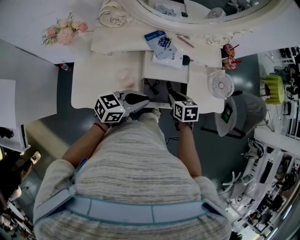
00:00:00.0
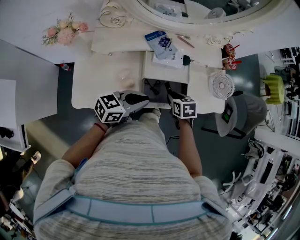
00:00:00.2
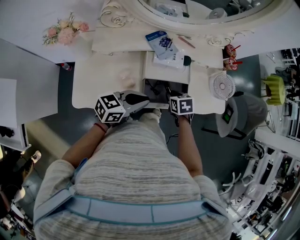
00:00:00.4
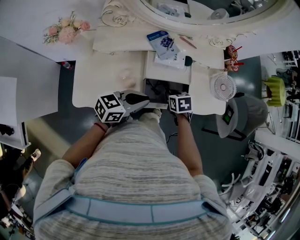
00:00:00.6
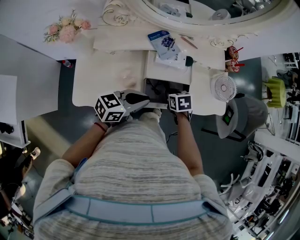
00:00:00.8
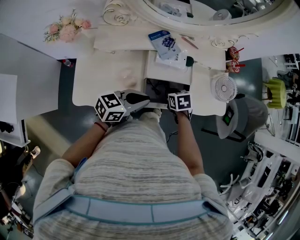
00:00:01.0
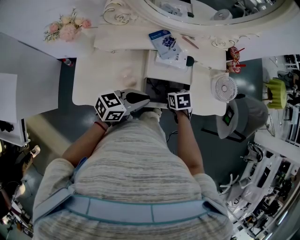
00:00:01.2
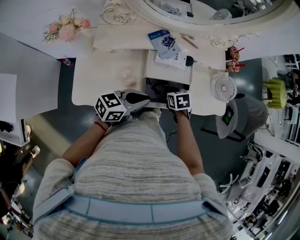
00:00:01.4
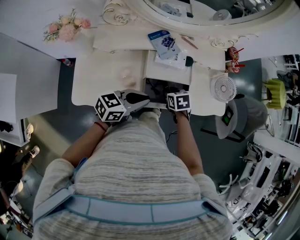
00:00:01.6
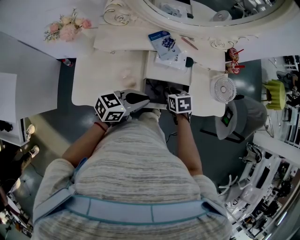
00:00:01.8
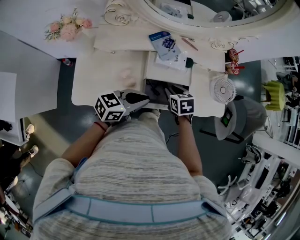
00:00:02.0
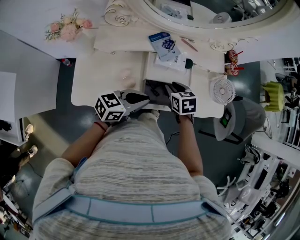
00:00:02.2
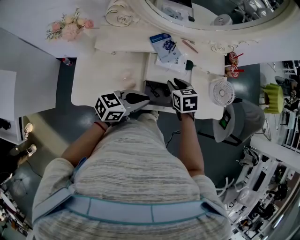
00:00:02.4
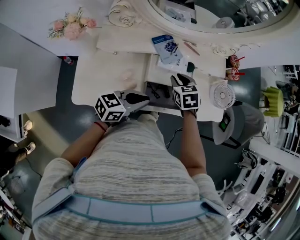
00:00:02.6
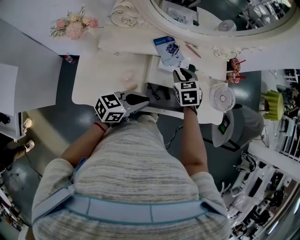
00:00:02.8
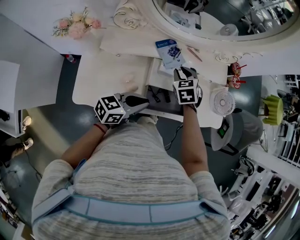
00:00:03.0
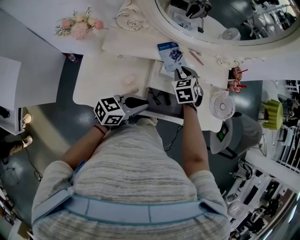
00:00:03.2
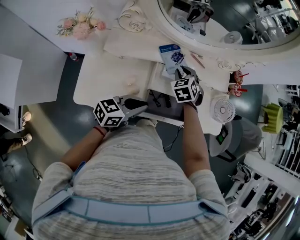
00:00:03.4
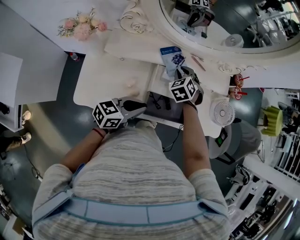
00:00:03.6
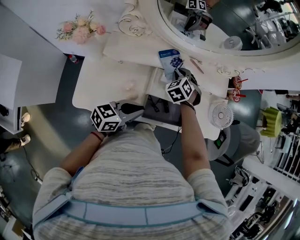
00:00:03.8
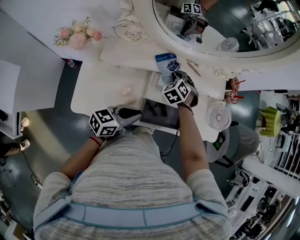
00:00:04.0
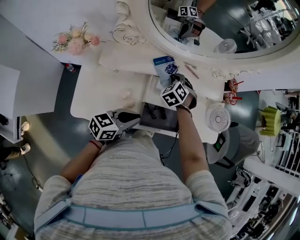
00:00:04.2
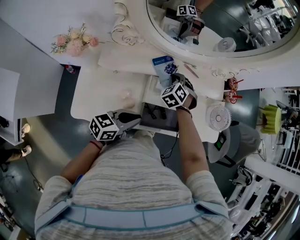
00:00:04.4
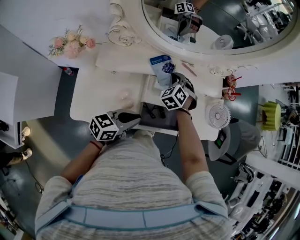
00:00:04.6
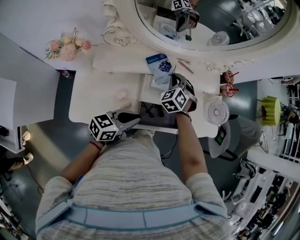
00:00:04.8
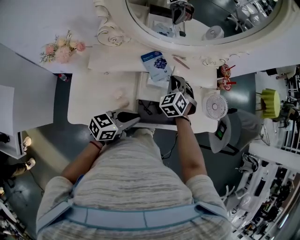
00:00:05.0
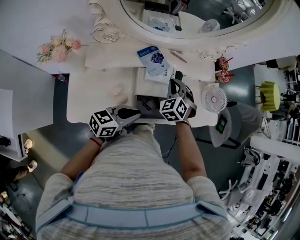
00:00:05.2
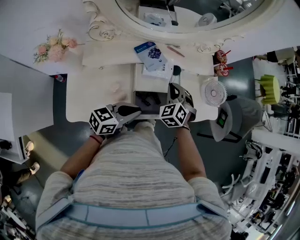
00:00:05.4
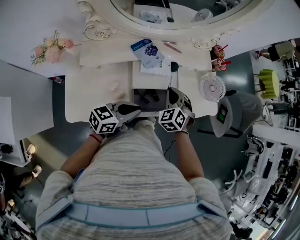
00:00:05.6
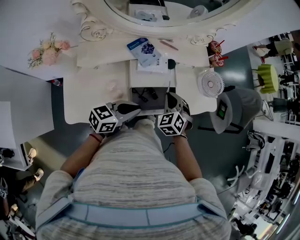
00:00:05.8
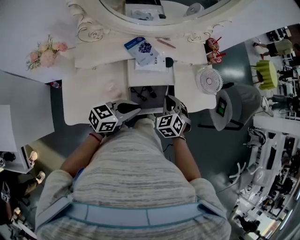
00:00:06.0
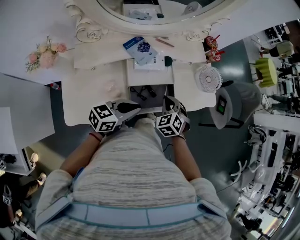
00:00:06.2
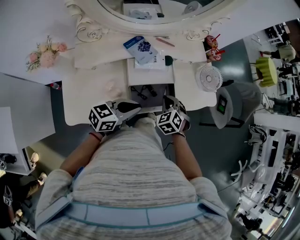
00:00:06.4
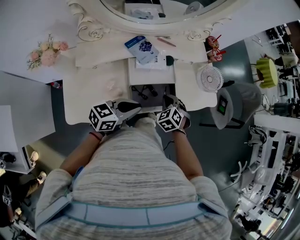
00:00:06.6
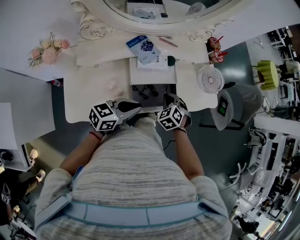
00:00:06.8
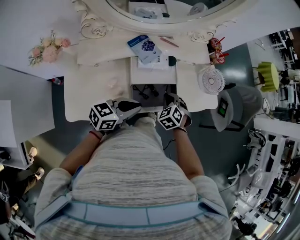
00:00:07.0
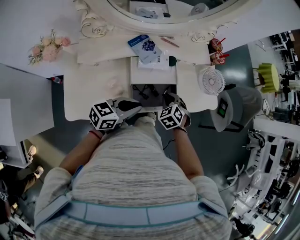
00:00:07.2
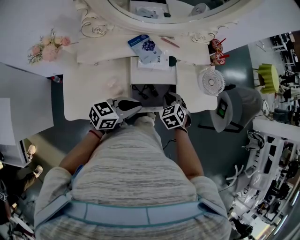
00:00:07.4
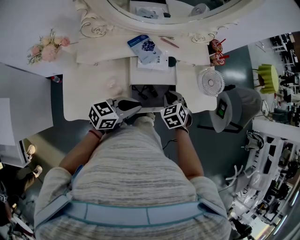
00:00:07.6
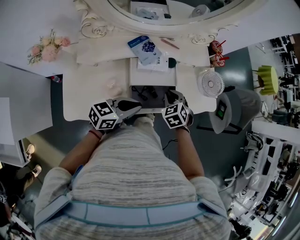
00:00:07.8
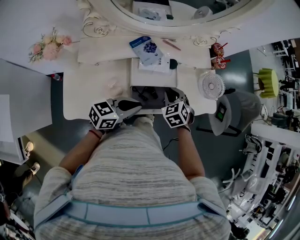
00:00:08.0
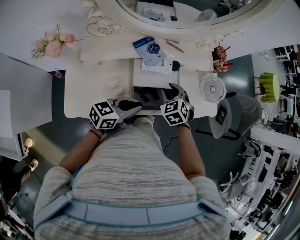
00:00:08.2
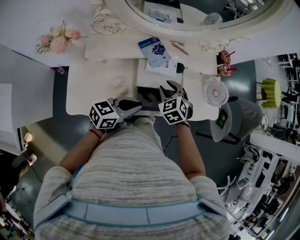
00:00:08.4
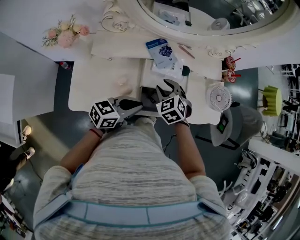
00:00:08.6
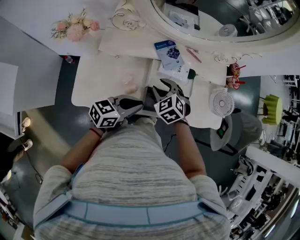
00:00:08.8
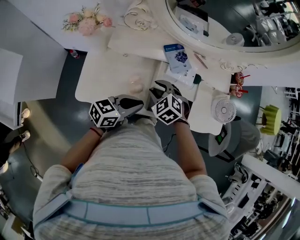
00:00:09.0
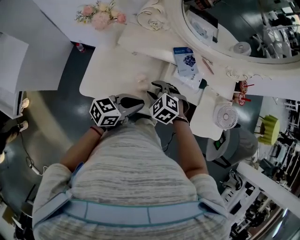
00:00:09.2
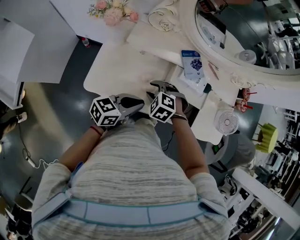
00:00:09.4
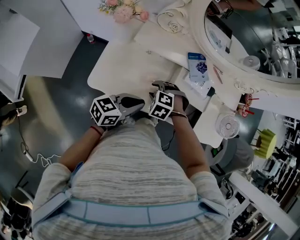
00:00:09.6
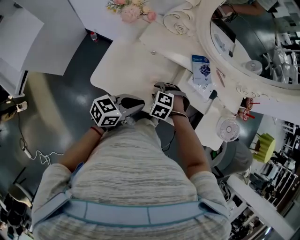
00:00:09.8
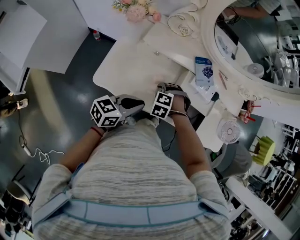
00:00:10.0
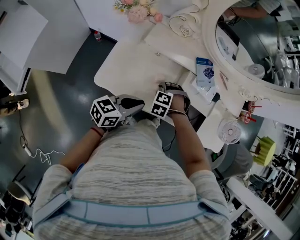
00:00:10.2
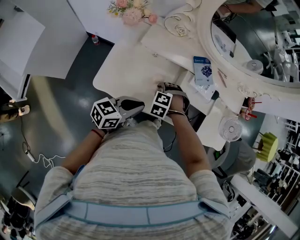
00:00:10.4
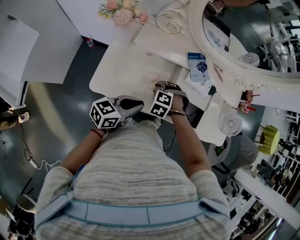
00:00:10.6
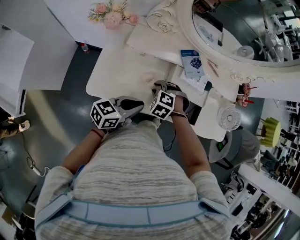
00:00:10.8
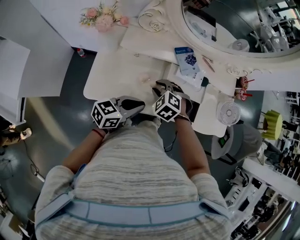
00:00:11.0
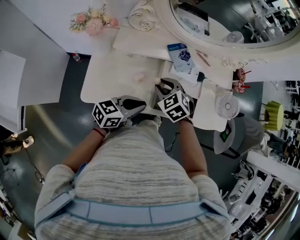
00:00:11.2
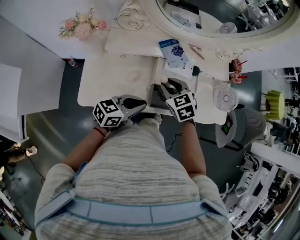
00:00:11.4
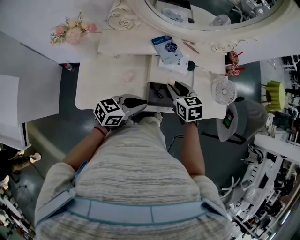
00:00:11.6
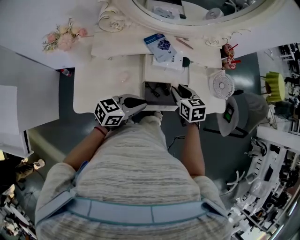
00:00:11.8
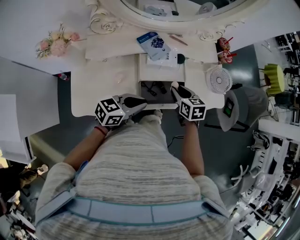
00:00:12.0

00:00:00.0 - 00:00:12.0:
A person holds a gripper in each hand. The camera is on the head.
00:00:00.0 - 00:00:01.6: The right gripper ends up about 5 cm from where it was.
00:00:01.6 - 00:00:03.0: The right gripper is displaced upward, forward and to the left by roughly 20 cm, and swivels roughly 30 degrees.
00:00:03.0 - 00:00:04.4: The right gripper ends up about 5 cm from where it was, and changes its angle by some 30 degrees.
00:00:04.4 - 00:00:06.0: The right gripper goes some 25 cm to the right and backward, while the left gripper goes roughly 5 cm to the right.
00:00:06.0 - 00:00:07.6: There are only small adjustments of the grippers.
00:00:07.6 - 00:00:09.0: The left gripper ends up some 10 cm from where it was. The right gripper shifts by approximately 20 cm, rotates about 40 degrees, and opens.
00:00:09.0 - 00:00:10.4: The left gripper shifts by approximately 10 cm; the right gripper is displaced downward by some 10 cm, and rotates approximately 40 degrees.
00:00:10.4 - 00:00:12.0: The left gripper changes place by roughly 15 cm, and swivels roughly 30 degrees; the right gripper moves approximately 25 cm, and rotates around the line of its fingers by approximately 100 degrees, clockwise from behind.

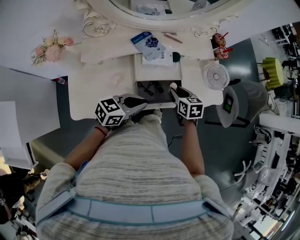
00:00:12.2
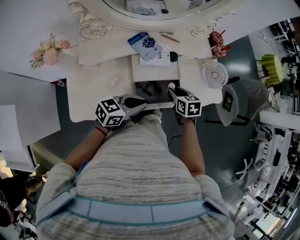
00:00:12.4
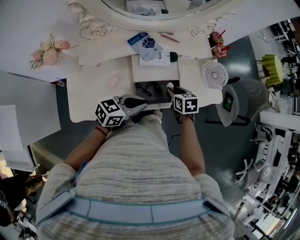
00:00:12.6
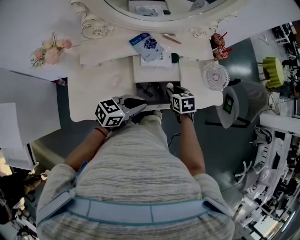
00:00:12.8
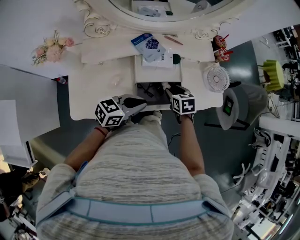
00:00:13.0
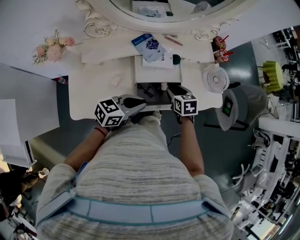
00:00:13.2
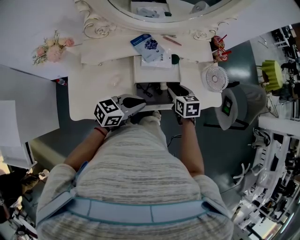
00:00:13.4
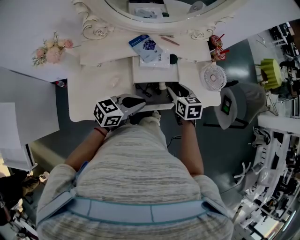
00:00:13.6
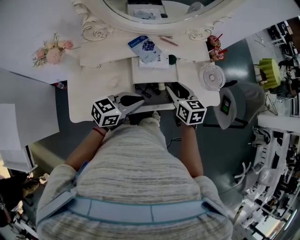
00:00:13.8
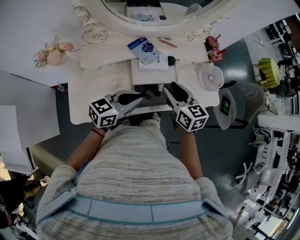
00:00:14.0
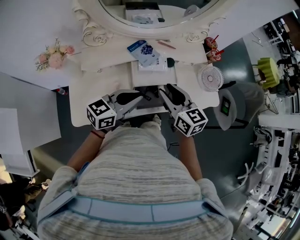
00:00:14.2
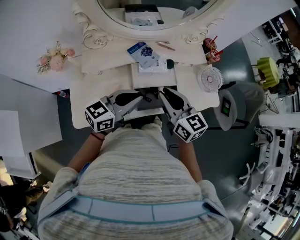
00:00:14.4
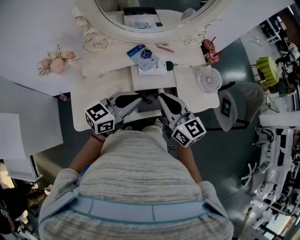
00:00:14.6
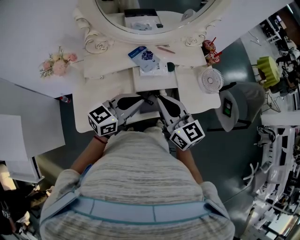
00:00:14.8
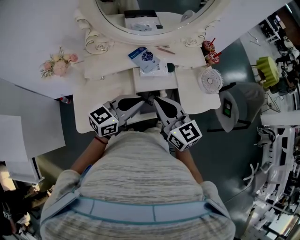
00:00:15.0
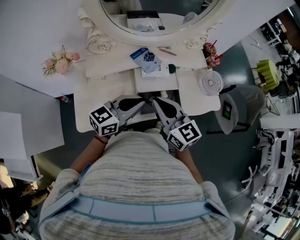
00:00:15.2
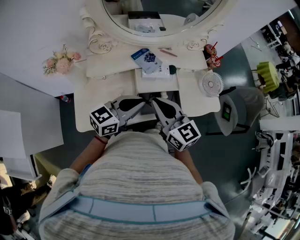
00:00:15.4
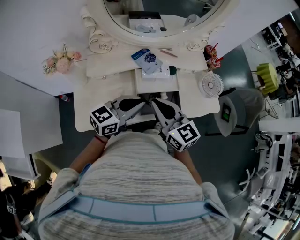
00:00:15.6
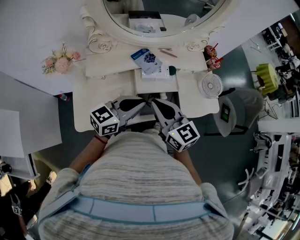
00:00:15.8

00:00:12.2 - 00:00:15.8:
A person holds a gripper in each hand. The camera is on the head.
00:00:12.2 - 00:00:14.0: The left gripper heads upward, covering some 5 cm, while the right gripper moves upward, roughly 15 cm, and turns by some 20 degrees.
00:00:14.0 - 00:00:15.8: The right gripper is displaced to the left, backward and upward by approximately 10 cm, and closes.

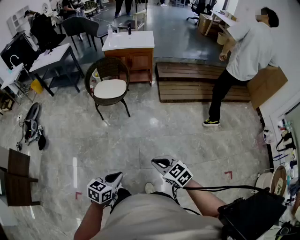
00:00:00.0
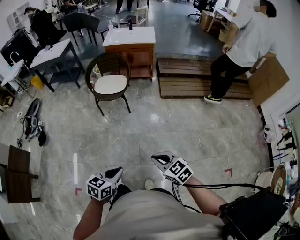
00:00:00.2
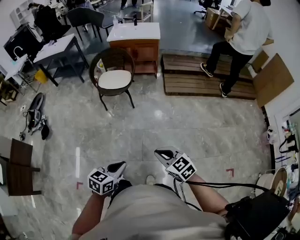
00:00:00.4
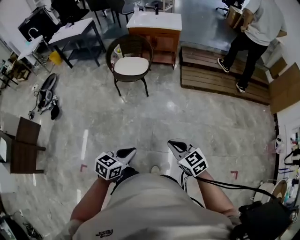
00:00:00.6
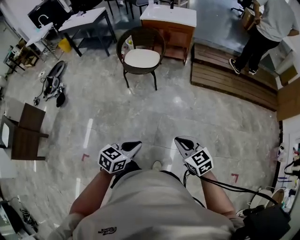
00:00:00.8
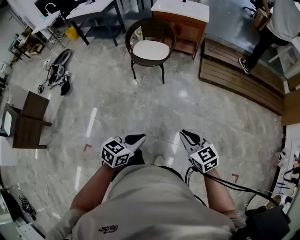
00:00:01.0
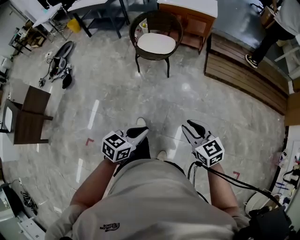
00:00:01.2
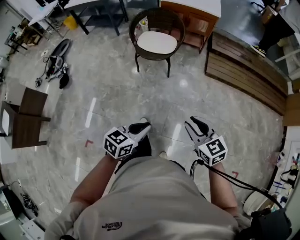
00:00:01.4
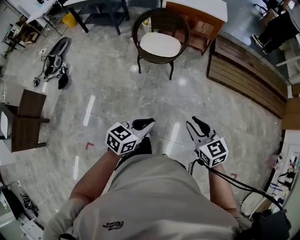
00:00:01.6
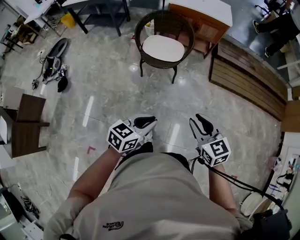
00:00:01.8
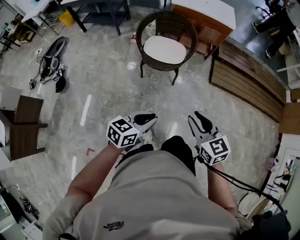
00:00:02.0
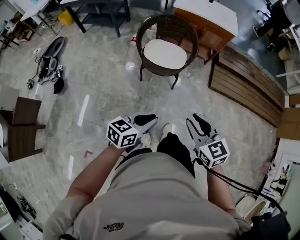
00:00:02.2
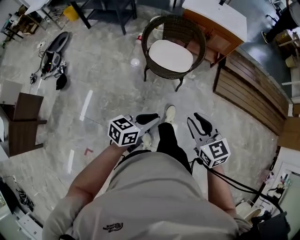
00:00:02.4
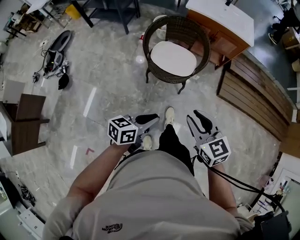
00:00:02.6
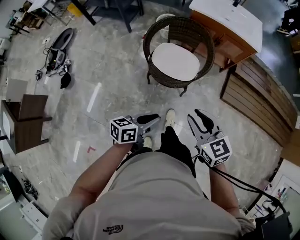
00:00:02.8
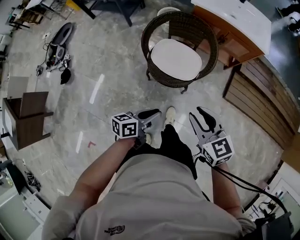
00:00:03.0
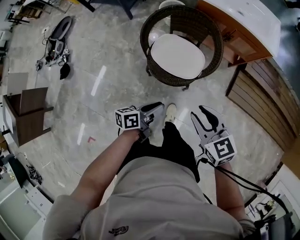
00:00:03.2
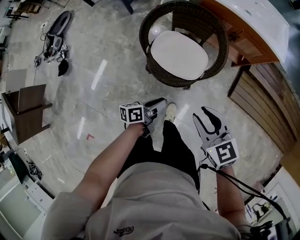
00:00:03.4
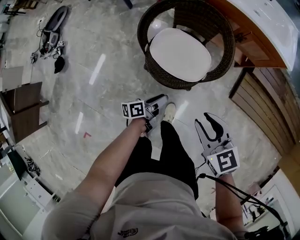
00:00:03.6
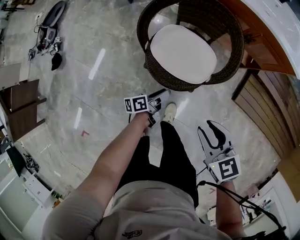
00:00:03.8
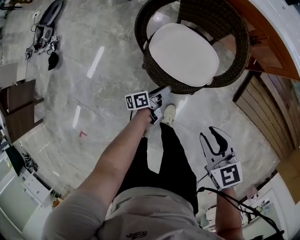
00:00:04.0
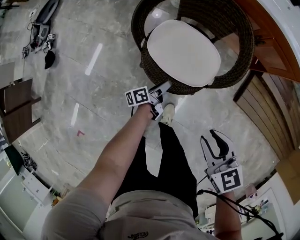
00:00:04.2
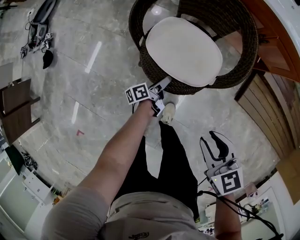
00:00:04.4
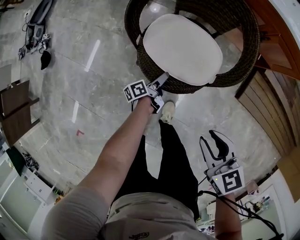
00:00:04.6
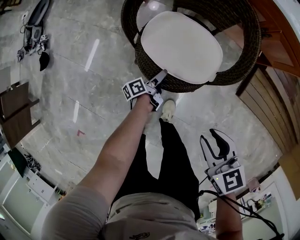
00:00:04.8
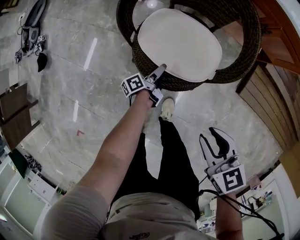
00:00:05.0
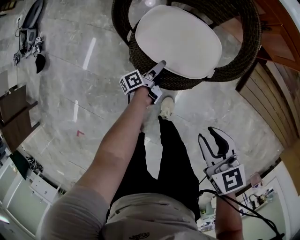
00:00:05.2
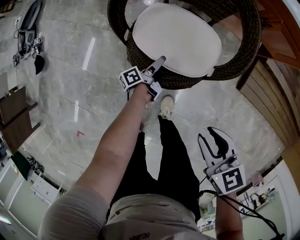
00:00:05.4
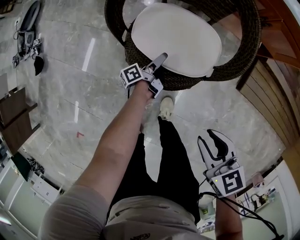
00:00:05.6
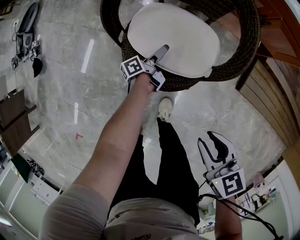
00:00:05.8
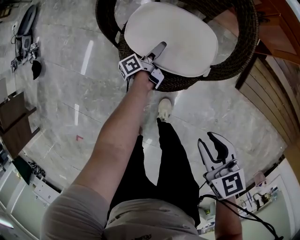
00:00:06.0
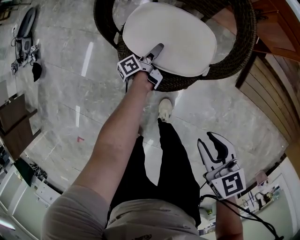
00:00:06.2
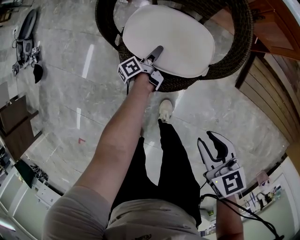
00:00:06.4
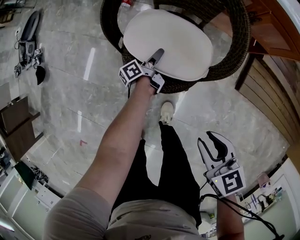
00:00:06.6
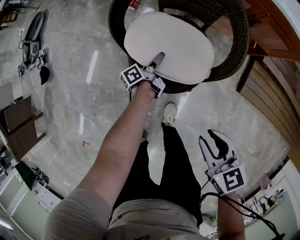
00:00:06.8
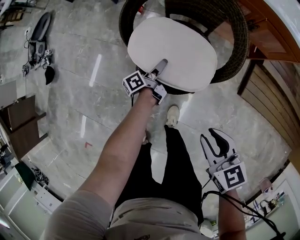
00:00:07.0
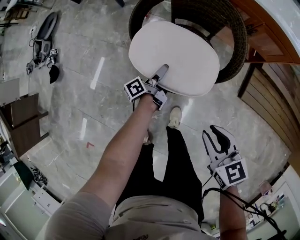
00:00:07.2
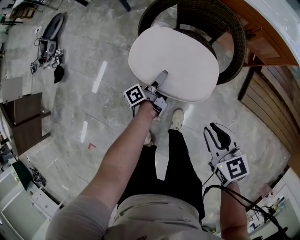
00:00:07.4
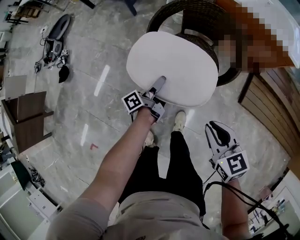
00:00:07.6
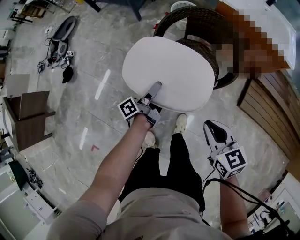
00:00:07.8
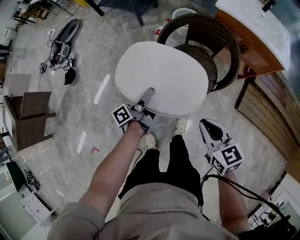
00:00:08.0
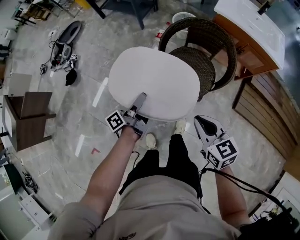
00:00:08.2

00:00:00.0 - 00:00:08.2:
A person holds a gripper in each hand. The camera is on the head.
00:00:00.0 - 00:00:01.6: The right gripper changes place by approximately 25 cm, and opens.
00:00:01.6 - 00:00:03.2: The right gripper shifts by some 50 cm.
00:00:03.2 - 00:00:05.0: The right gripper moves downward, some 20 cm.
00:00:06.6 - 00:00:08.2: The right gripper travels upward by roughly 20 cm, and closes.
